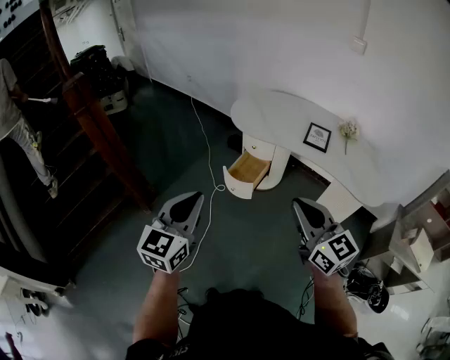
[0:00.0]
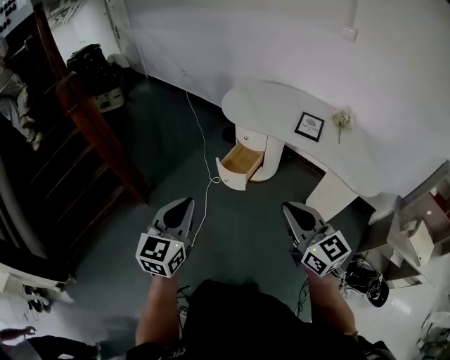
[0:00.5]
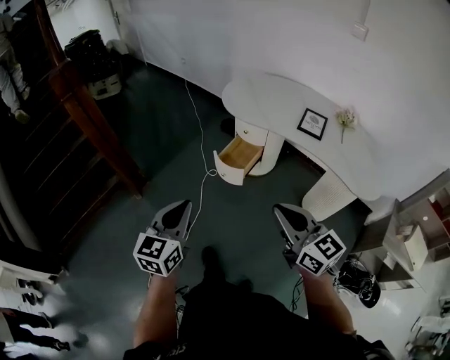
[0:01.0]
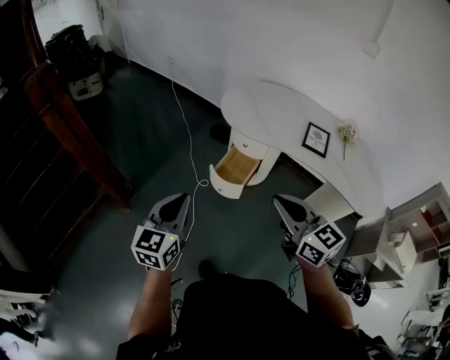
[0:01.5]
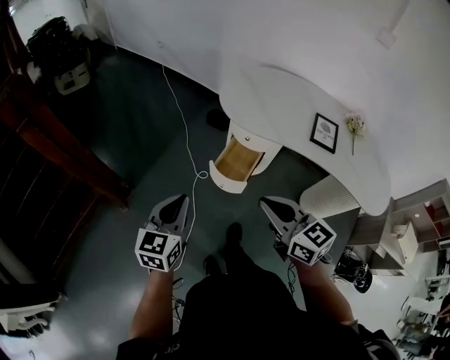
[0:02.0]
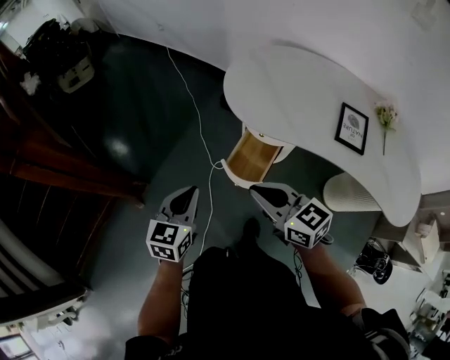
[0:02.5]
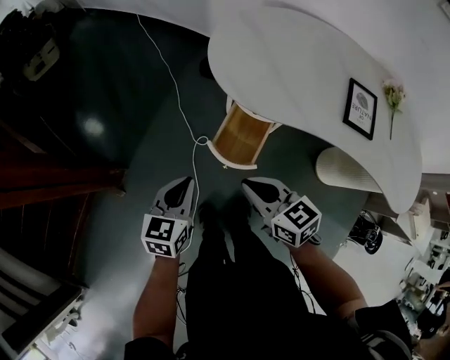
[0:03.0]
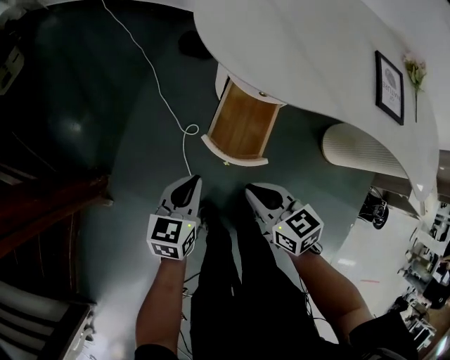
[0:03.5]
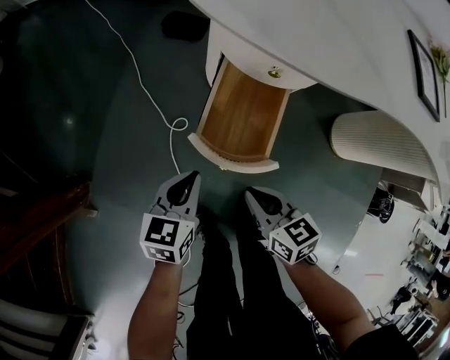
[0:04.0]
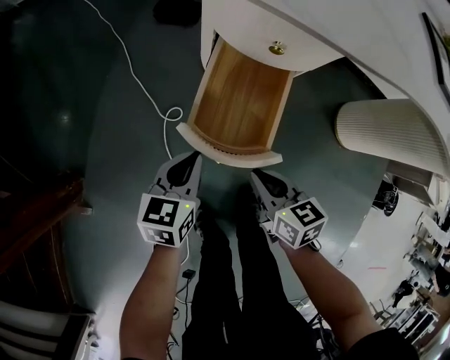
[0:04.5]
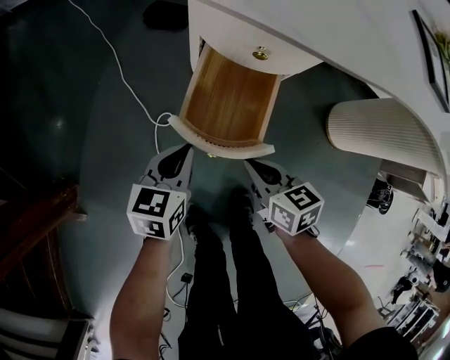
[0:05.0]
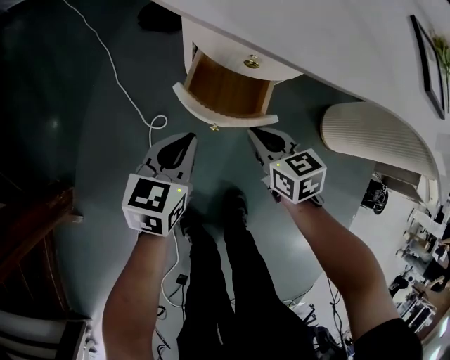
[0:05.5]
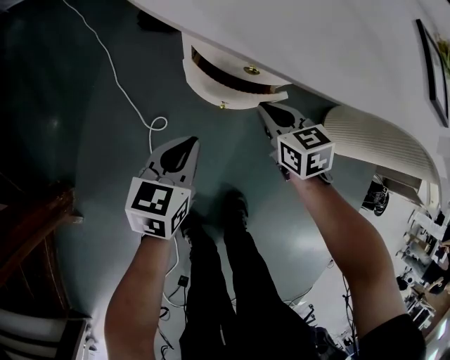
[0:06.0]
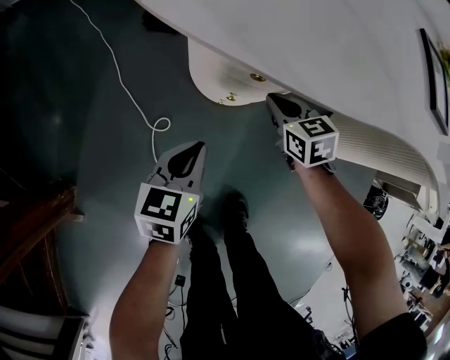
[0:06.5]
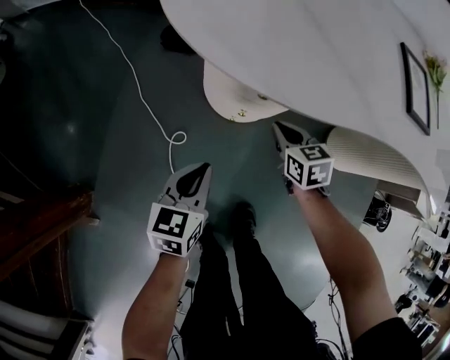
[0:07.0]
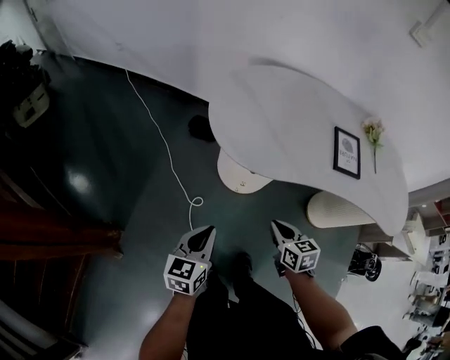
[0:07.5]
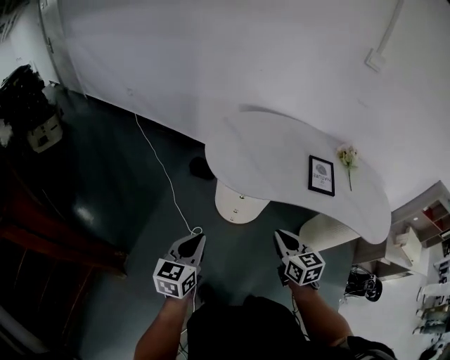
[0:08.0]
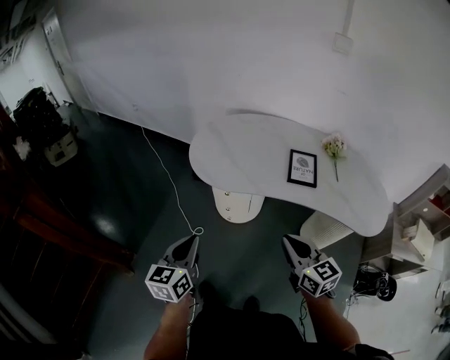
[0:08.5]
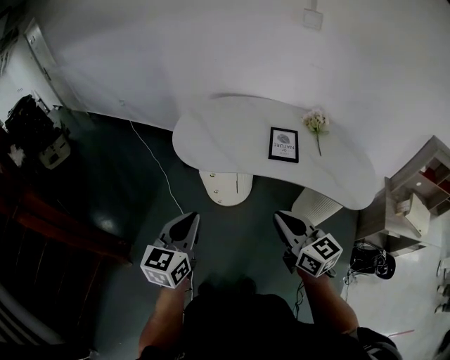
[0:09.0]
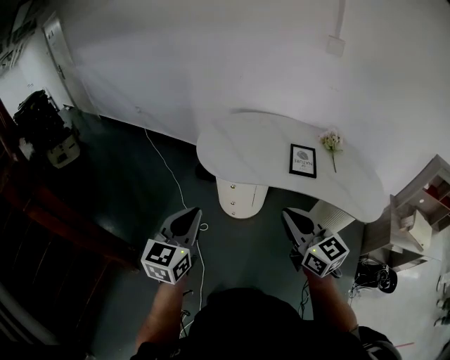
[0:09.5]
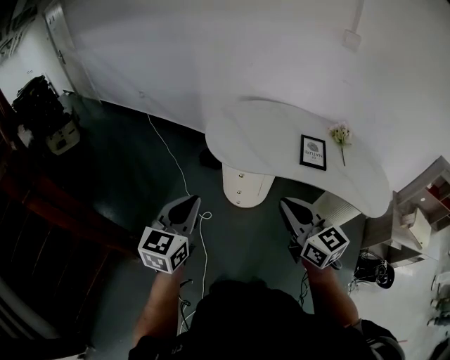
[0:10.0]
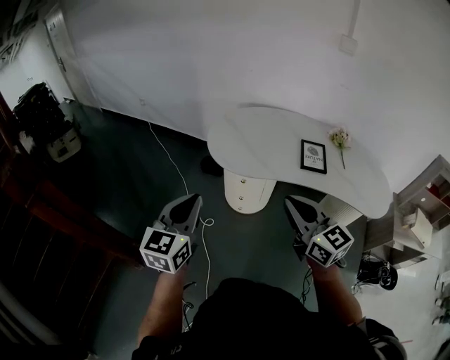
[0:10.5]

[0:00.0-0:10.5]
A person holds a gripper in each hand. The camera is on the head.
0:00.0 to 0:02.0: The left gripper is displaced forward and downward by roughly 30 cm. Meanwhile the right gripper goes about 30 cm forward, downward and to the left.
0:02.0 to 0:04.0: The left gripper shifts roughly 50 cm downward and forward, and turns by approximately 30 degrees, while the right gripper goes approximately 50 cm downward, and swivels some 40 degrees.
0:04.0 to 0:06.5: The right gripper is displaced forward and to the right by some 25 cm. Meanwhile the left gripper travels forward and to the right by some 10 cm.
0:06.5 to 0:08.5: The grippers both shift upward and backward by about 60 cm. The right gripper tips its fingers upward by roughly 30 degrees; the left gripper rotates some 20 degrees.
0:08.5 to 0:10.5: The two grippers go roughly 15 cm upward and to the left.

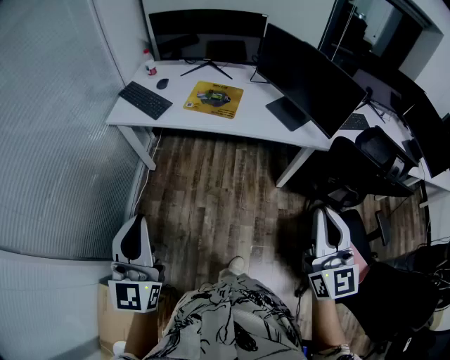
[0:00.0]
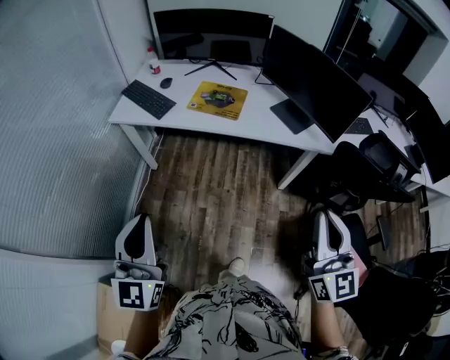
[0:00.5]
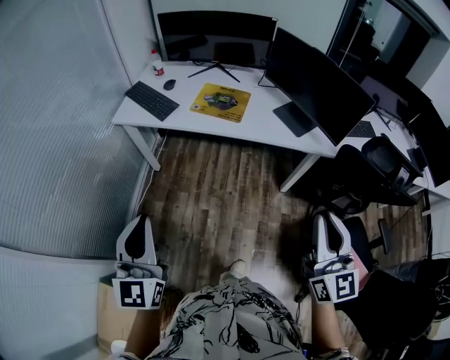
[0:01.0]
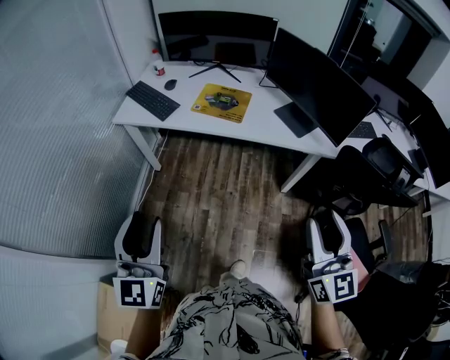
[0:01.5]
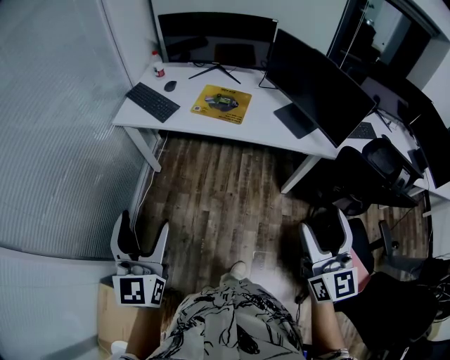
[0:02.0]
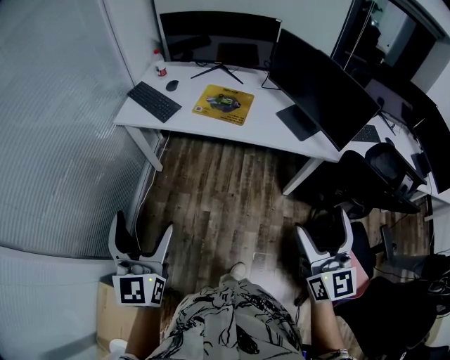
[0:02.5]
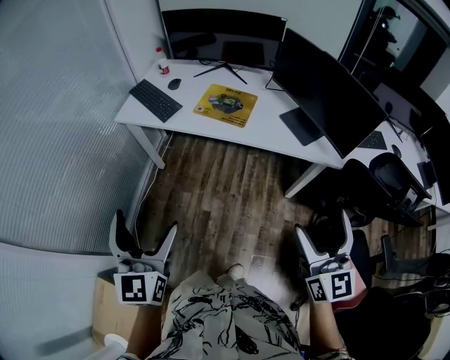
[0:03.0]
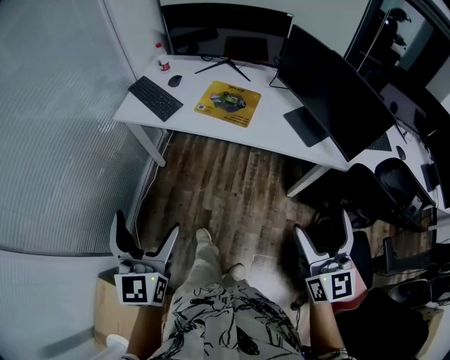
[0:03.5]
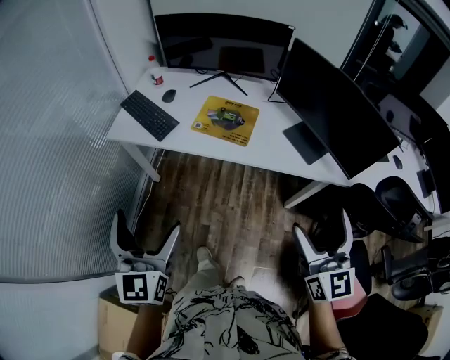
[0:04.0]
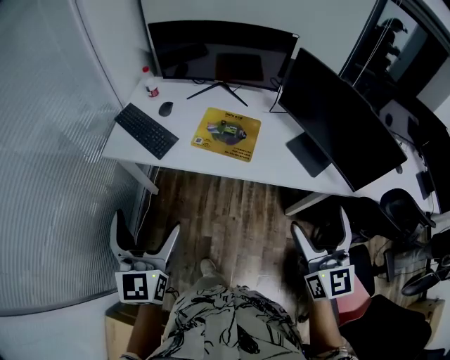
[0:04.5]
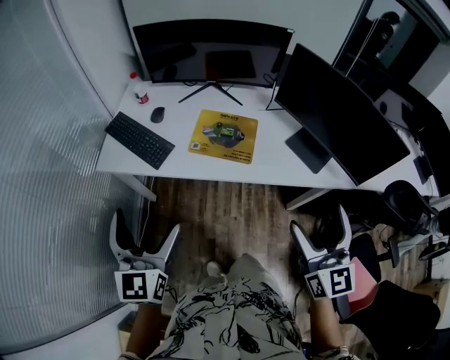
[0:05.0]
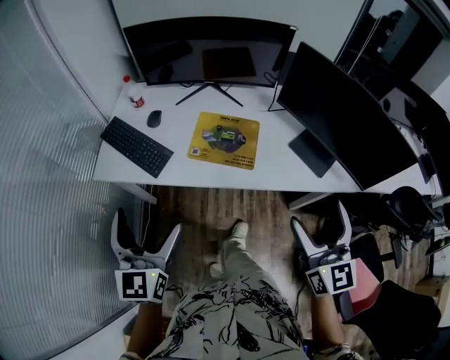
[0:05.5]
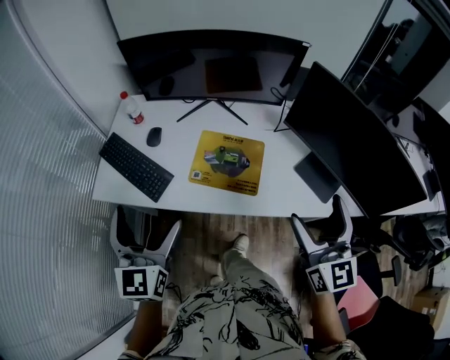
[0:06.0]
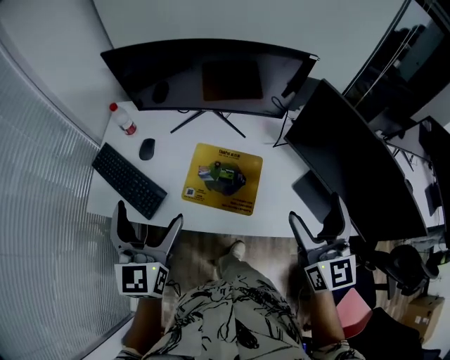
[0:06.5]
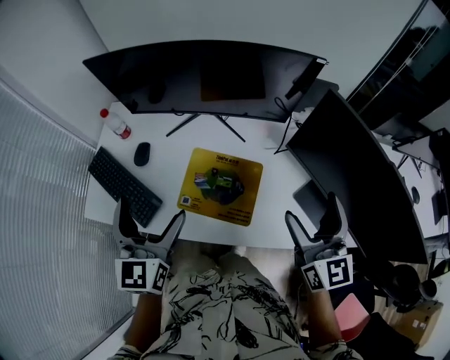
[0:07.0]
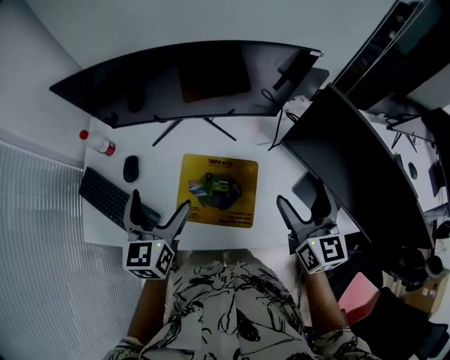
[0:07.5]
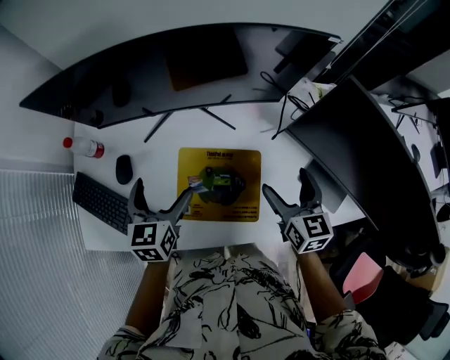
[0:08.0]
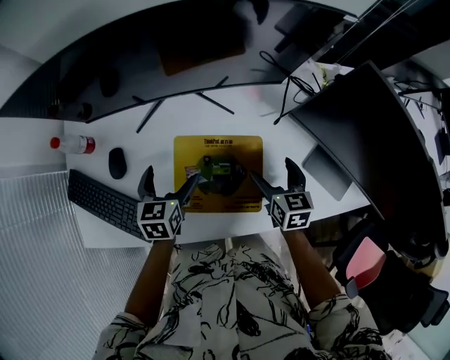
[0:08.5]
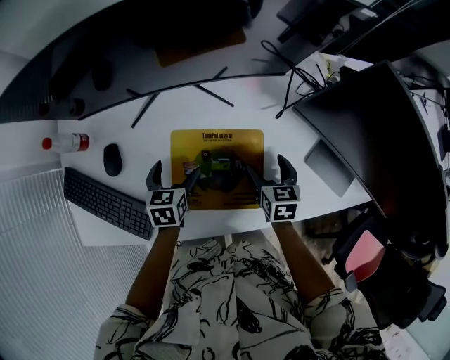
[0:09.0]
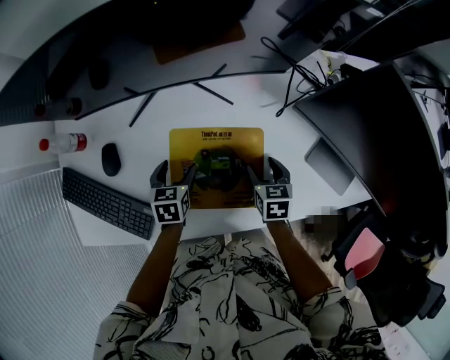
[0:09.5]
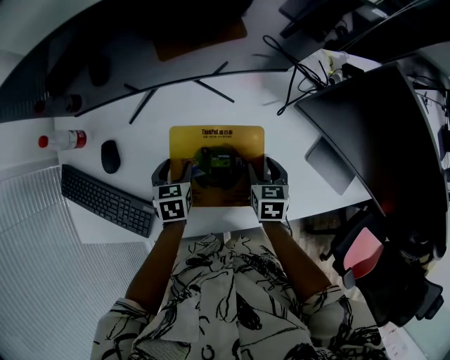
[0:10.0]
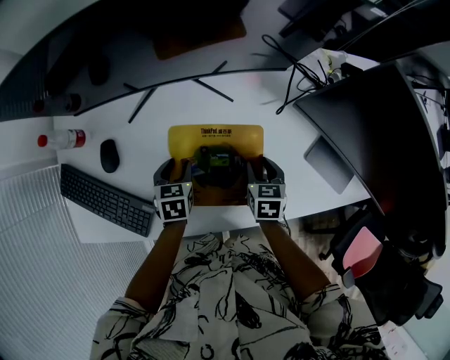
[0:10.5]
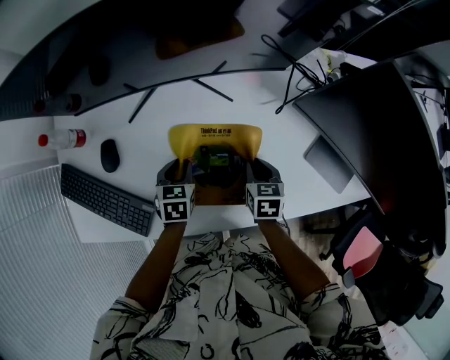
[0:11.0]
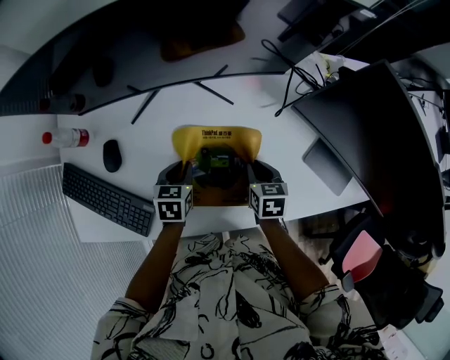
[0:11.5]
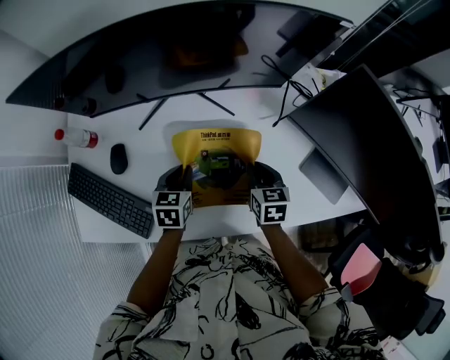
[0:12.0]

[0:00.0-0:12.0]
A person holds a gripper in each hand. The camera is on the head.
0:00.0 to 0:02.0: The left gripper opens its fingers; the right gripper opens.
0:02.0 to 0:04.0: Both grippers travel together forward, roughly 15 cm.
0:04.0 to 0:06.0: The grippers both shift forward by roughly 30 cm.
0:06.0 to 0:08.0: Both grippers move forward and downward, some 35 cm. The left gripper changes its angle by approximately 30 degrees; the right gripper rotates approximately 30 degrees.
0:08.0 to 0:10.0: The two grippers go roughly 20 cm downward. The right gripper turns by approximately 30 degrees, and closes up. The left gripper turns by approximately 30 degrees, and closes its fingers.
0:10.0 to 0:12.0: The two grippers go approximately 5 cm upward.

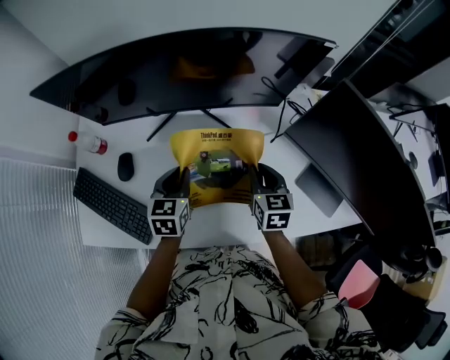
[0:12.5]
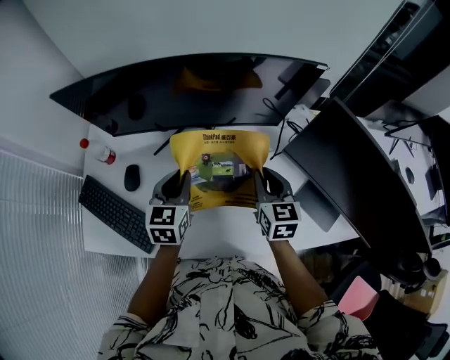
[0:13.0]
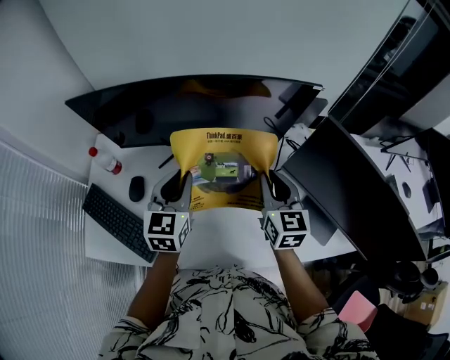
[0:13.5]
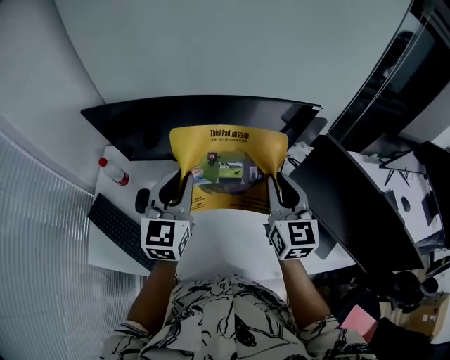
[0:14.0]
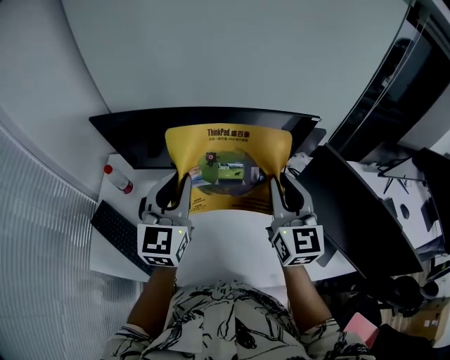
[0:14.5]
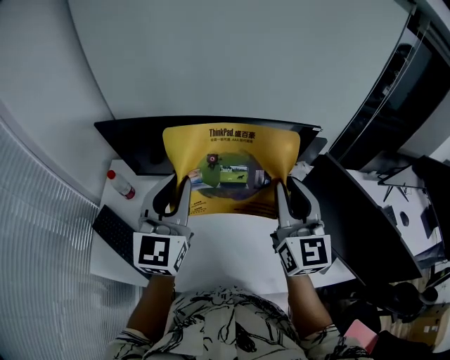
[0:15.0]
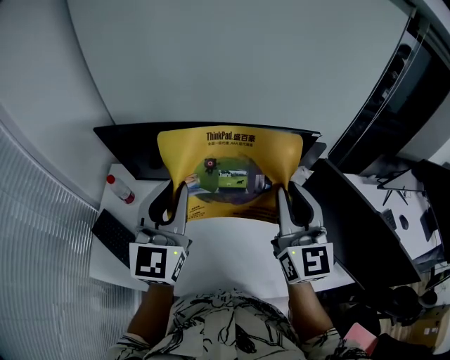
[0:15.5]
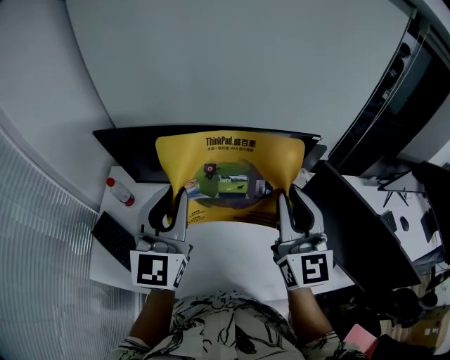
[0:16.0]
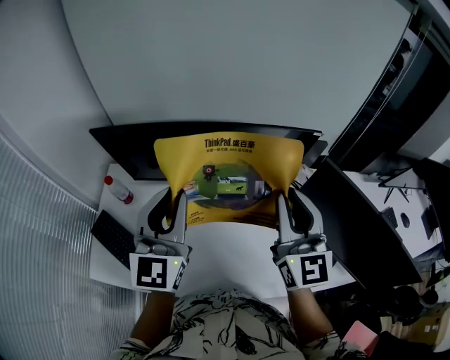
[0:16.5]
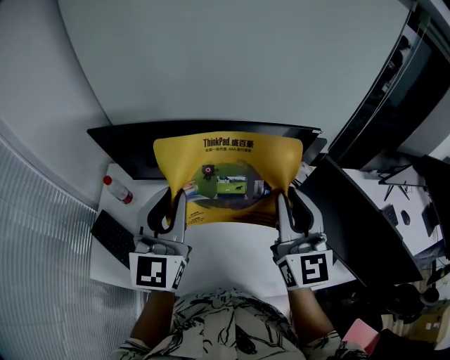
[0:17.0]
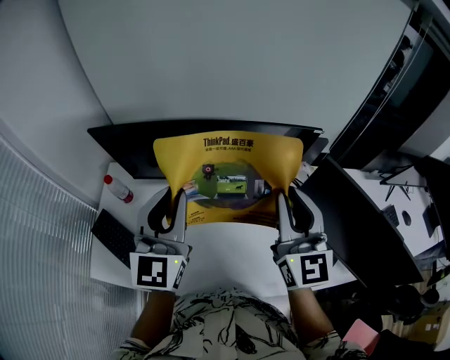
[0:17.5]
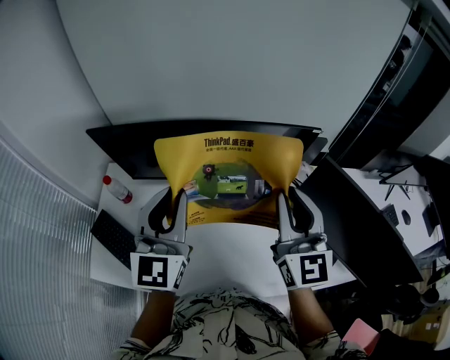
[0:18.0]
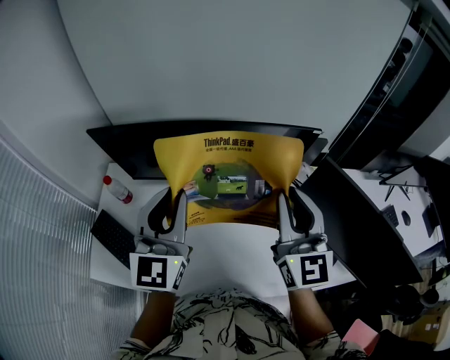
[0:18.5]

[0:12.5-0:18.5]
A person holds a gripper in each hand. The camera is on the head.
0:12.5 to 0:14.5: Both grippers move upward, approximately 30 cm. The left gripper angles its fingers upward, by some 30 degrees. The right gripper tips its fingers upward by approximately 30 degrees.
0:14.5 to 0:16.5: Both grippers travel together upward, some 5 cm.
0:16.5 to 0:18.5: Both grippers stay about where they are.
